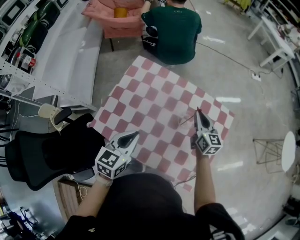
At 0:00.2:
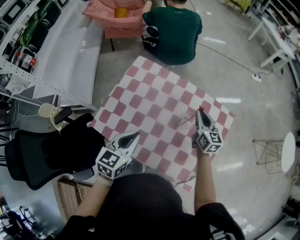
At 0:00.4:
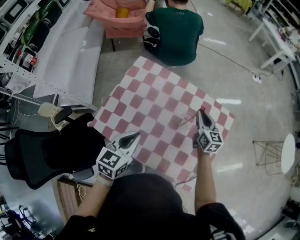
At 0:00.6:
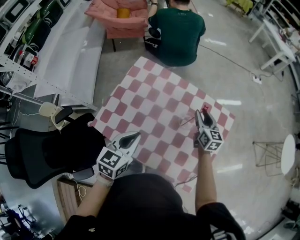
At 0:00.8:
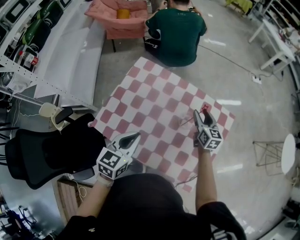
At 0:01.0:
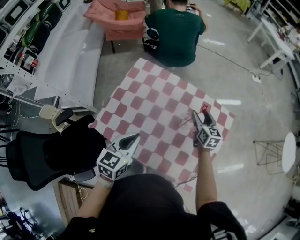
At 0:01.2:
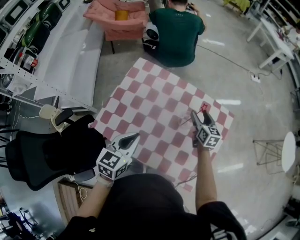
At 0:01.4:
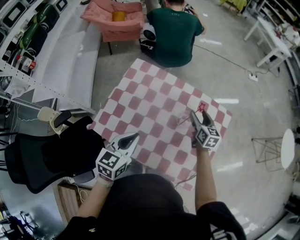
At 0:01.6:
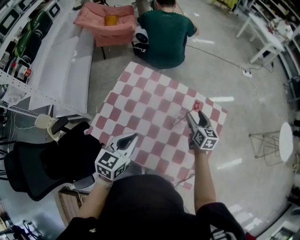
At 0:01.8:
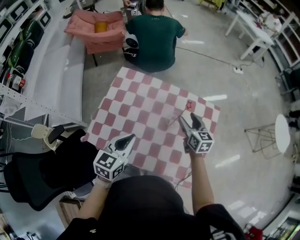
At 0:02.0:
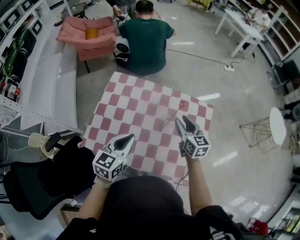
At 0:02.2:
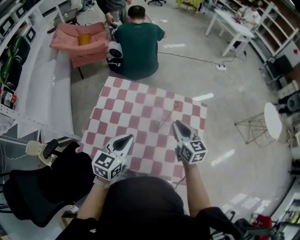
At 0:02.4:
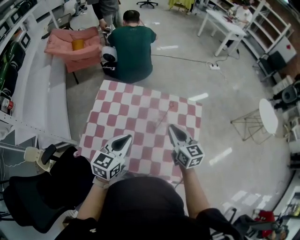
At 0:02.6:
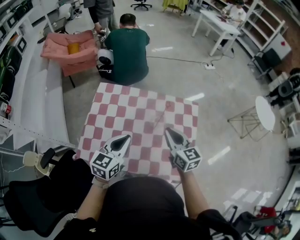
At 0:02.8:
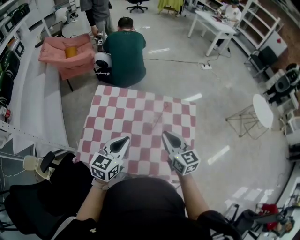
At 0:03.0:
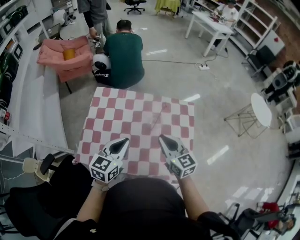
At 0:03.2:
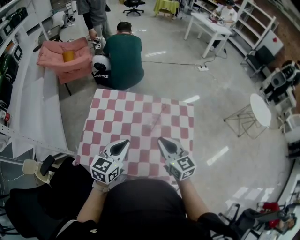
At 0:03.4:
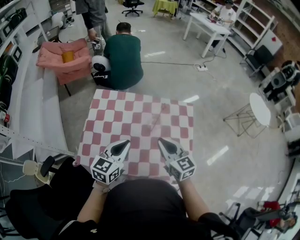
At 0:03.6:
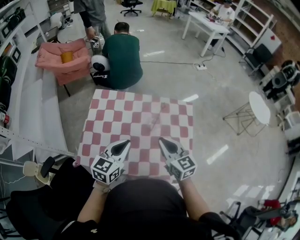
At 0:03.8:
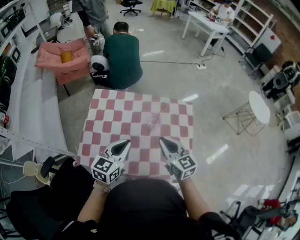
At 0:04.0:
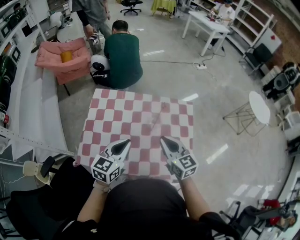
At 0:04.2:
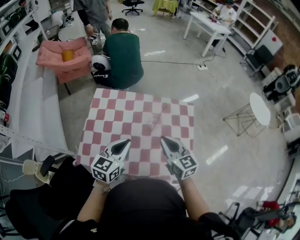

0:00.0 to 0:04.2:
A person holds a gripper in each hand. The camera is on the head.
0:00.0 to 0:01.4: The right gripper shifts by roughly 5 cm, and opens up.
0:01.4 to 0:02.8: The right gripper heads backward and upward, covering some 25 cm, and closes up. Meanwhile the left gripper moves approximately 5 cm.
0:02.8 to 0:04.2: The grippers stay close to where they were, moving slightly.

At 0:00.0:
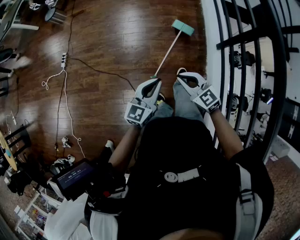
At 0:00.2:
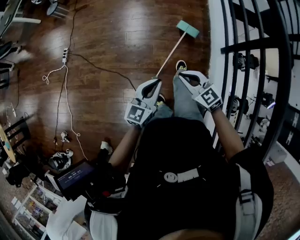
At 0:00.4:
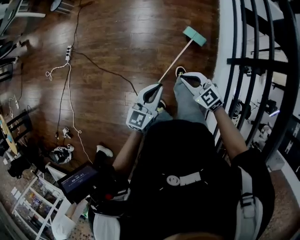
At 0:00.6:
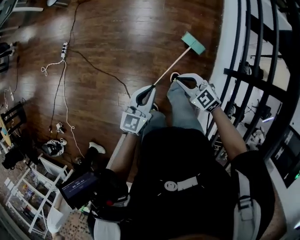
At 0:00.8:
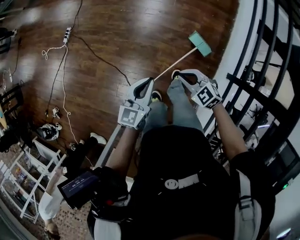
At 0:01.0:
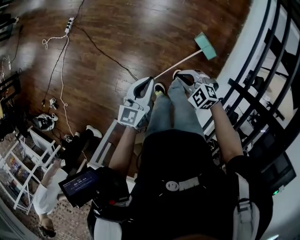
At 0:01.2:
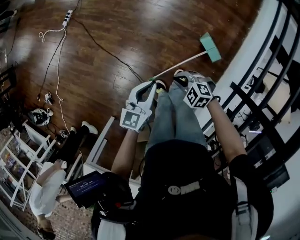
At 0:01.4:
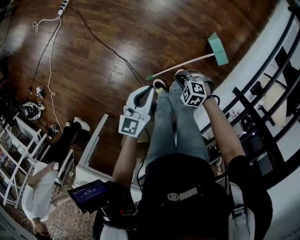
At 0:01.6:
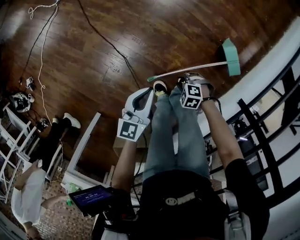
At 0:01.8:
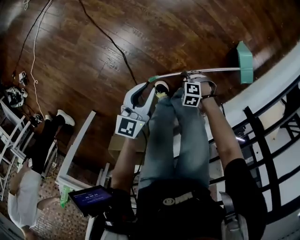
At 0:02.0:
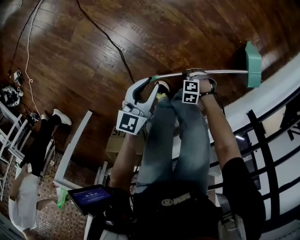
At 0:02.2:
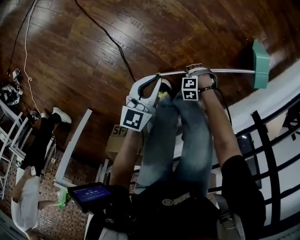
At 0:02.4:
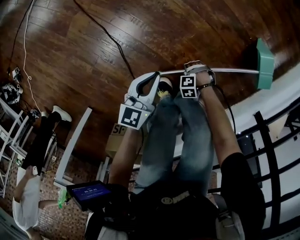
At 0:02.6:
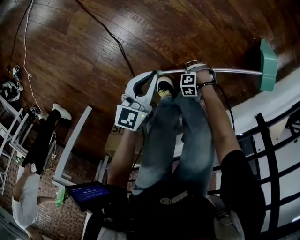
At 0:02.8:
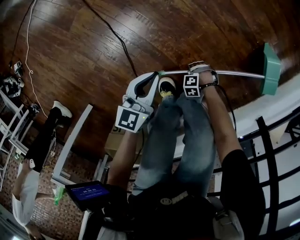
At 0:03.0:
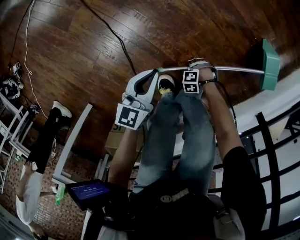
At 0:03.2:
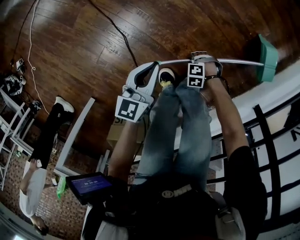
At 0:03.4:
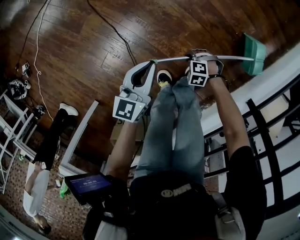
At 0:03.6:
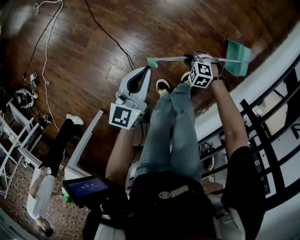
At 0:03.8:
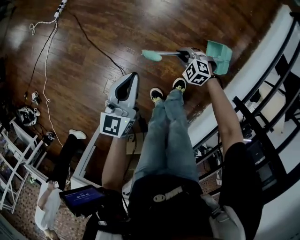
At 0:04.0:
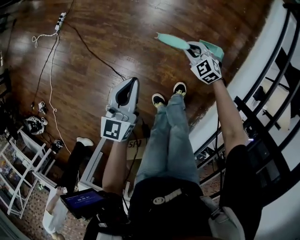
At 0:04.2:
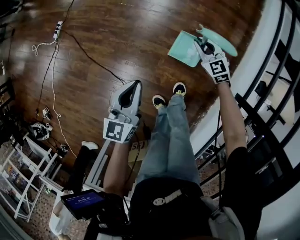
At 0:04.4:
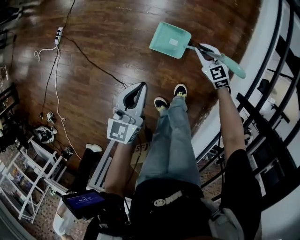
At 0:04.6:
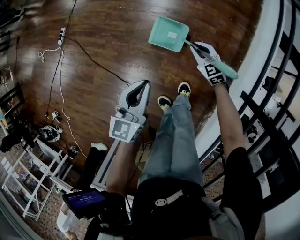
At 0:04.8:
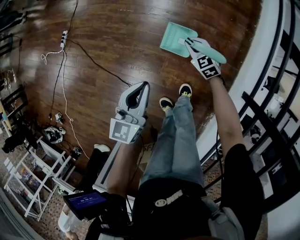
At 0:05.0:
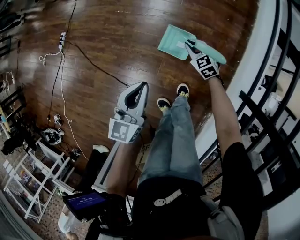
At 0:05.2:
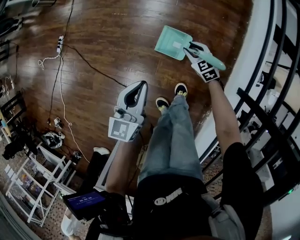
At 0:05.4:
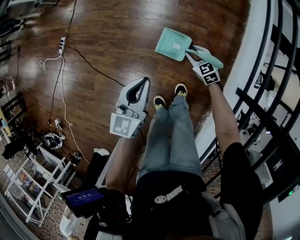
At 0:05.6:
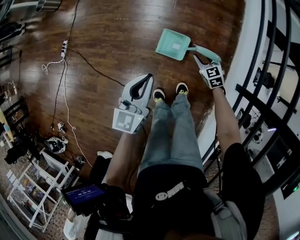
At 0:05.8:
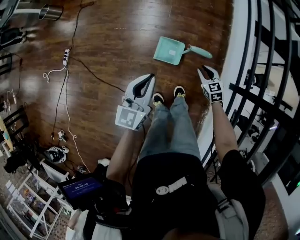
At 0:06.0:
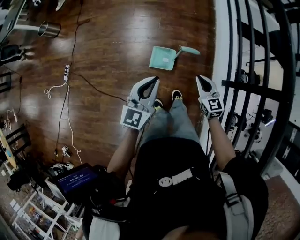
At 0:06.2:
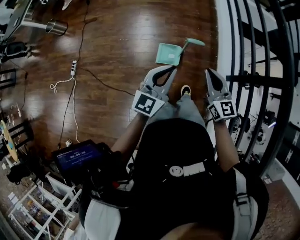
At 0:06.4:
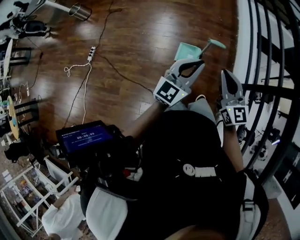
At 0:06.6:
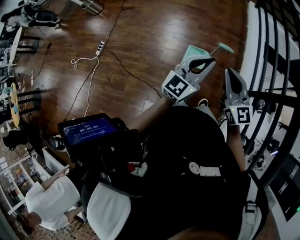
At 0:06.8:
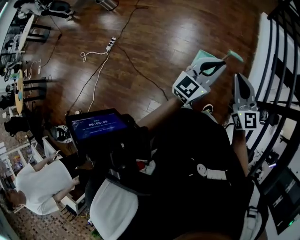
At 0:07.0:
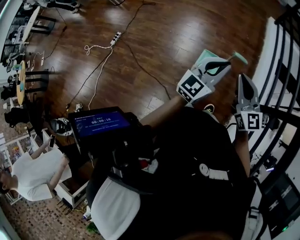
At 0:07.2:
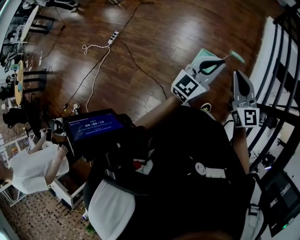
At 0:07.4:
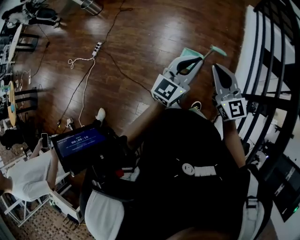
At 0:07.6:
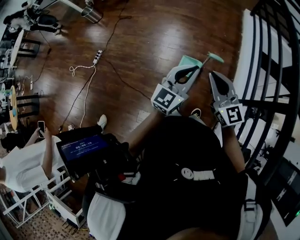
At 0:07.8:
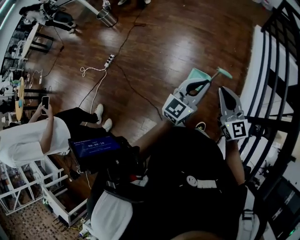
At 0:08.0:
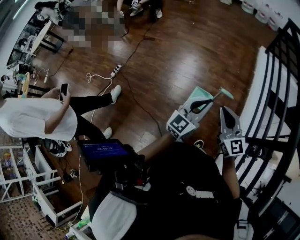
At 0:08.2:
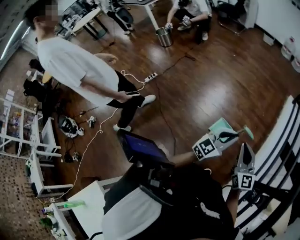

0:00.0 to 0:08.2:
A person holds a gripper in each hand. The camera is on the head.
0:00.0 to 0:01.6: The right gripper heads downward, covering roughly 40 cm, tips its fingers downward by approximately 40 degrees, and opens, while the left gripper moves downward, roughly 25 cm, and changes its angle by roughly 40 degrees.
0:01.6 to 0:03.2: The grippers both shift downward by approximately 20 cm. The left gripper opens, then closes once more; the right gripper swivels about 20 degrees.
0:03.2 to 0:05.0: The right gripper ends up approximately 50 cm from where it was, and points its fingers some 30 degrees further upward, while the left gripper goes approximately 30 cm upward, and rotates about 20 degrees.
0:05.0 to 0:06.6: The left gripper travels upward by some 30 cm, and turns by some 40 degrees, while the right gripper travels upward by some 60 cm, tilts its fingers roughly 40 degrees upward, and opens and closes again.
0:06.6 to 0:08.2: The grippers both shift to the right by approximately 10 cm.

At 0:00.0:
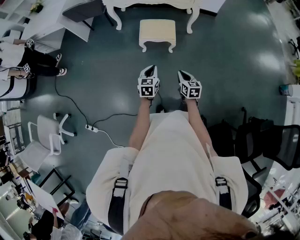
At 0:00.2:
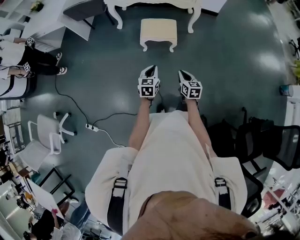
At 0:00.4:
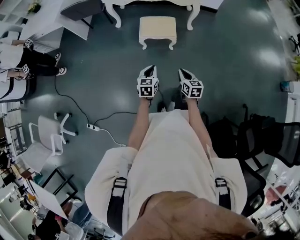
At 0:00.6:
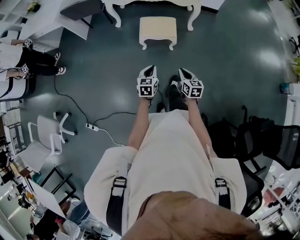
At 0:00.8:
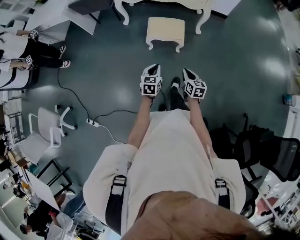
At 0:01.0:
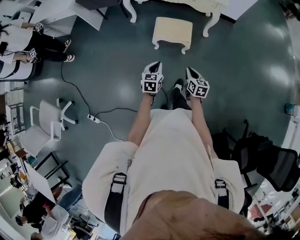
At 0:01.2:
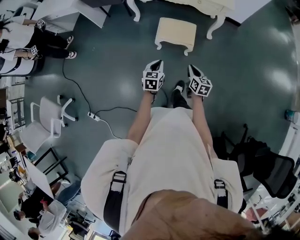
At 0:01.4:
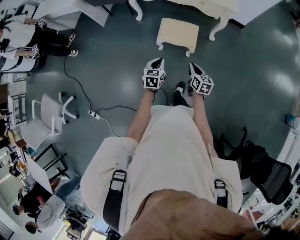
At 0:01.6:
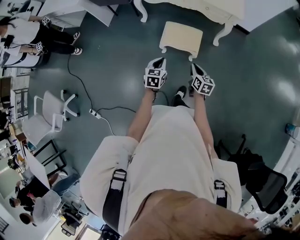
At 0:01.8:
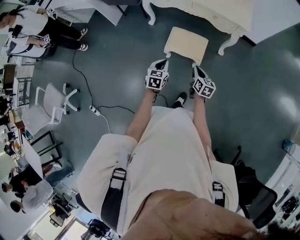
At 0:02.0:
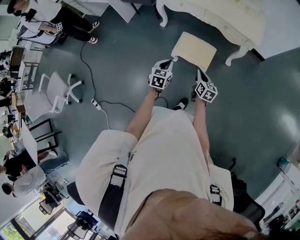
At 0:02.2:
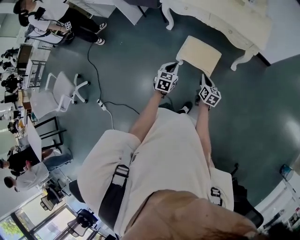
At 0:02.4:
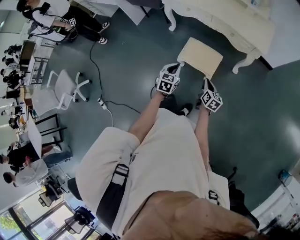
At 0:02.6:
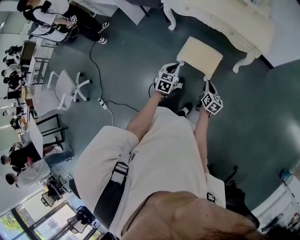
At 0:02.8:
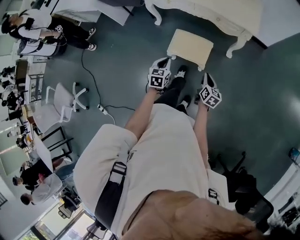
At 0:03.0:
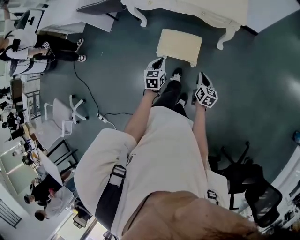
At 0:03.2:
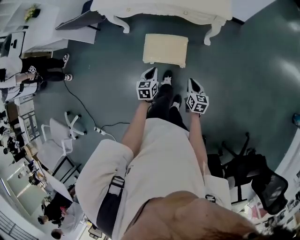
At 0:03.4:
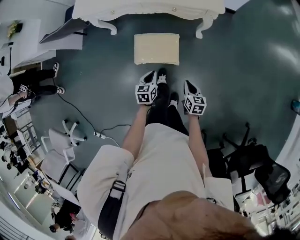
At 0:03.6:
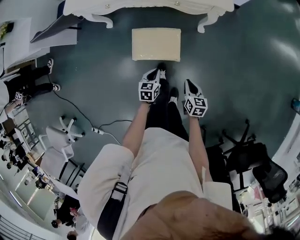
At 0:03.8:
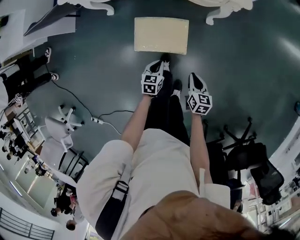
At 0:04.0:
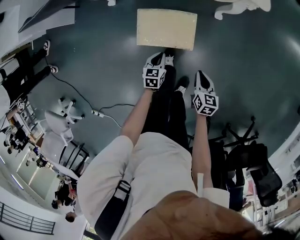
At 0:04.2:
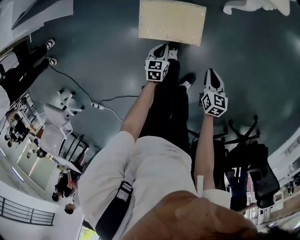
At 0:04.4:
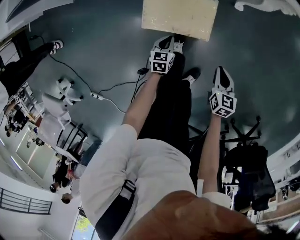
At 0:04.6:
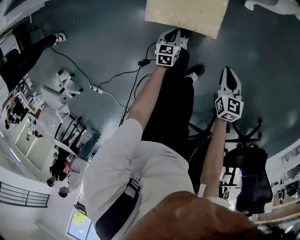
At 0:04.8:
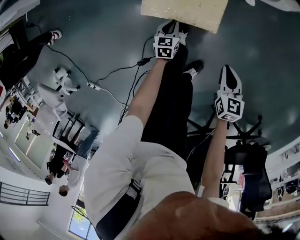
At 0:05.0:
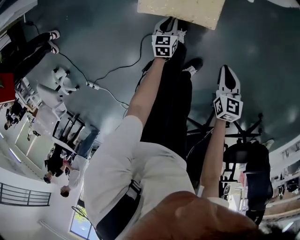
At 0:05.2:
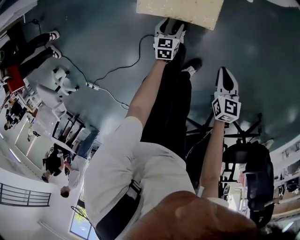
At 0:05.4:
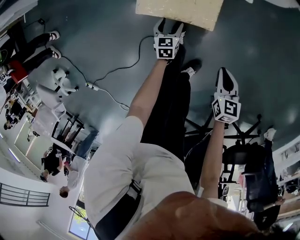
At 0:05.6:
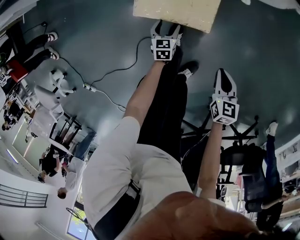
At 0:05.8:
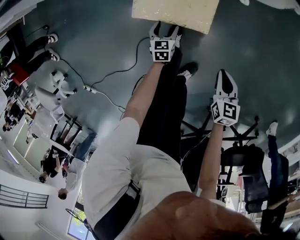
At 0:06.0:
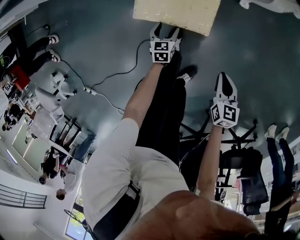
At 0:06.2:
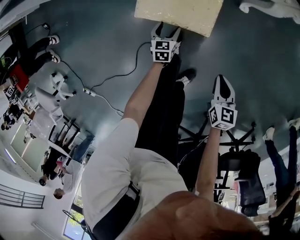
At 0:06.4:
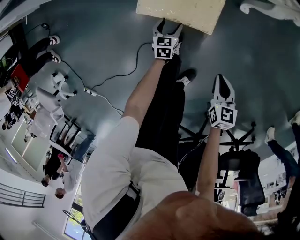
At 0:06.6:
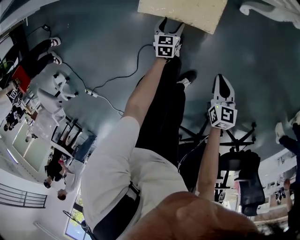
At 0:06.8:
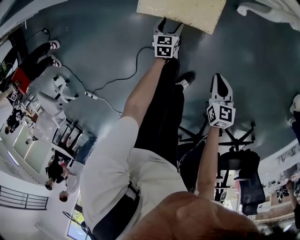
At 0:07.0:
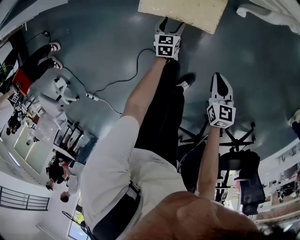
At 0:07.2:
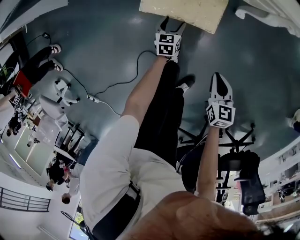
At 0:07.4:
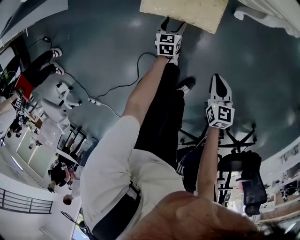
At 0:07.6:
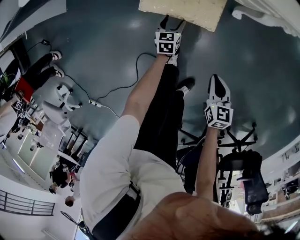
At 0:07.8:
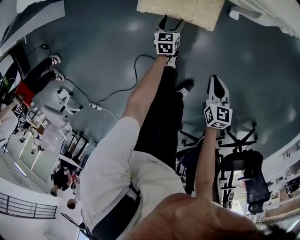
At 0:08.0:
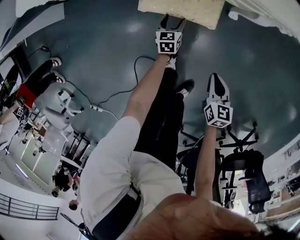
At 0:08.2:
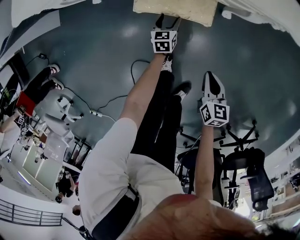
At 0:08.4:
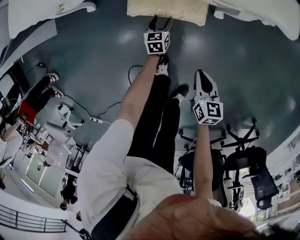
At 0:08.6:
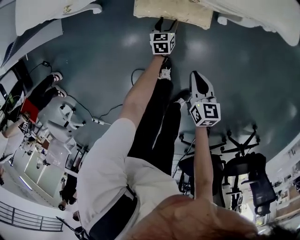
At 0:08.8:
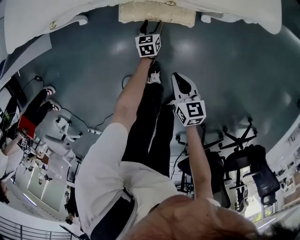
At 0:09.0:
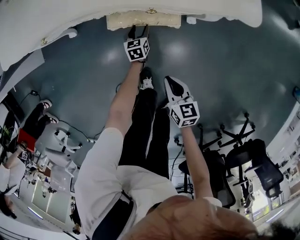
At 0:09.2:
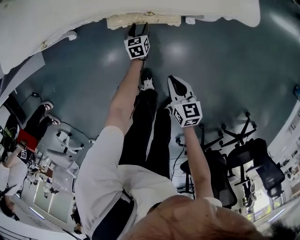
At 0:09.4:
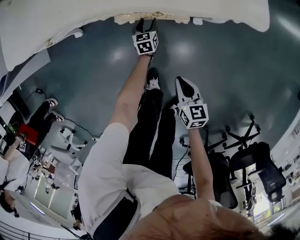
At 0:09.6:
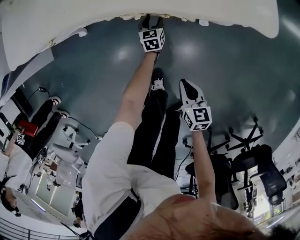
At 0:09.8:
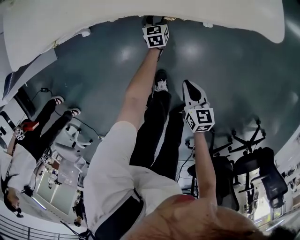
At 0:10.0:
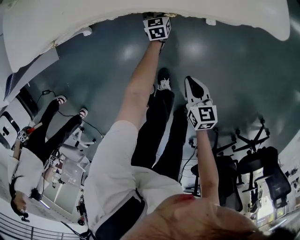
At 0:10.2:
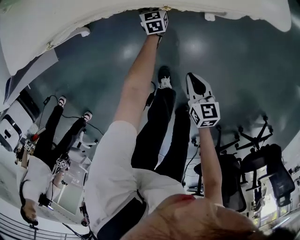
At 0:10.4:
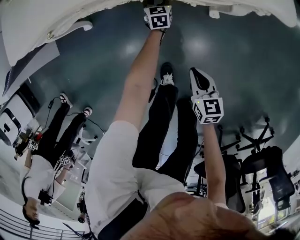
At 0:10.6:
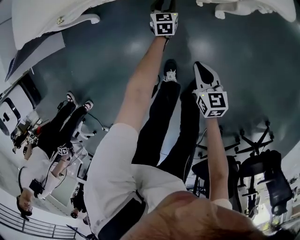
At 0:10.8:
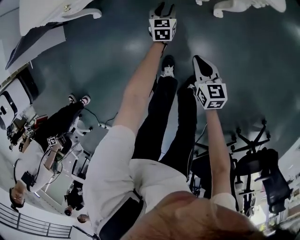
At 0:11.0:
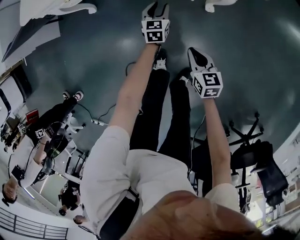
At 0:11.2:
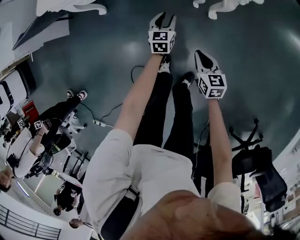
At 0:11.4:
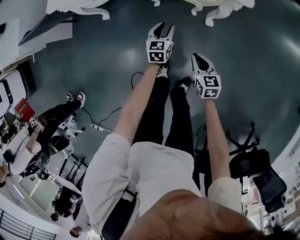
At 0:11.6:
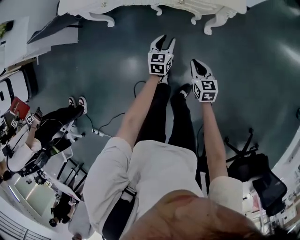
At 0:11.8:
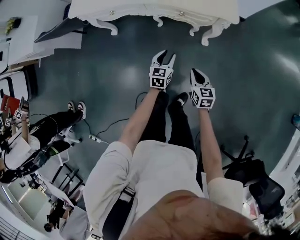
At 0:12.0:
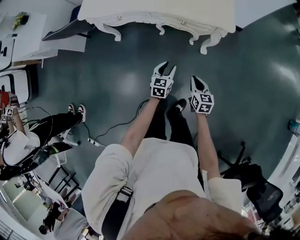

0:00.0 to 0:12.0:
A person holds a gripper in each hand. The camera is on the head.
0:00.0 to 0:01.6: The two grippers go some 25 cm forward.
0:01.6 to 0:03.0: The left gripper is displaced forward and to the right by roughly 20 cm. Meanwhile the right gripper shifts about 15 cm to the right and forward.
0:03.0 to 0:04.4: The left gripper shifts approximately 40 cm downward; the right gripper shifts approximately 25 cm downward.
0:04.4 to 0:06.0: The left gripper moves downward, some 5 cm, and opens up.
0:06.0 to 0:07.6: The right gripper travels forward by some 10 cm. The left gripper moves forward, approximately 20 cm.
0:07.6 to 0:09.0: The left gripper heads forward and to the right, covering some 15 cm. The right gripper travels forward by roughly 10 cm.
0:09.0 to 0:10.4: The left gripper heads forward, covering approximately 10 cm; the right gripper moves about 5 cm.
0:10.4 to 0:12.0: The left gripper heads backward and upward, covering roughly 50 cm. The right gripper travels upward and backward by approximately 25 cm.
